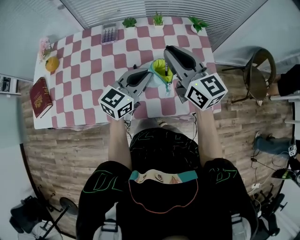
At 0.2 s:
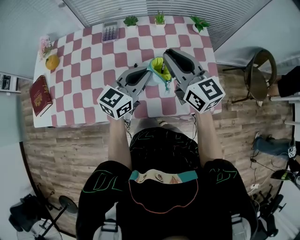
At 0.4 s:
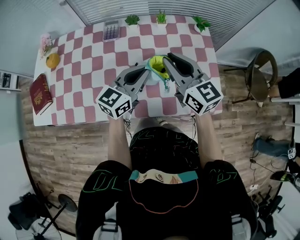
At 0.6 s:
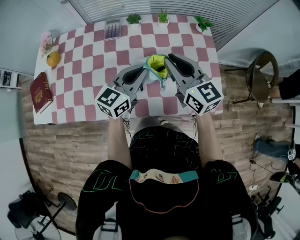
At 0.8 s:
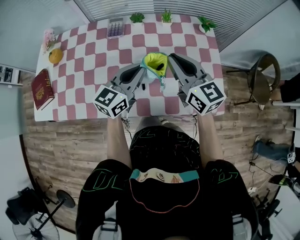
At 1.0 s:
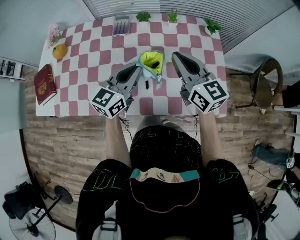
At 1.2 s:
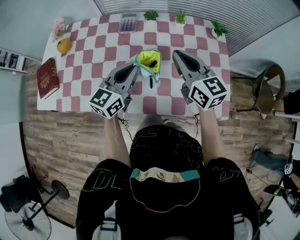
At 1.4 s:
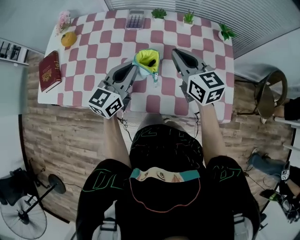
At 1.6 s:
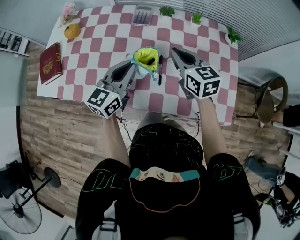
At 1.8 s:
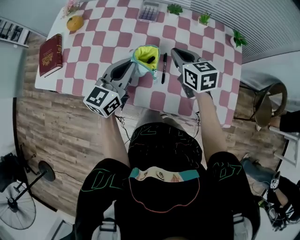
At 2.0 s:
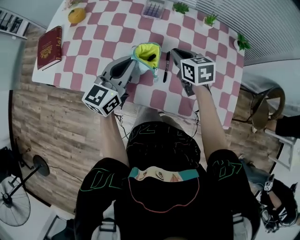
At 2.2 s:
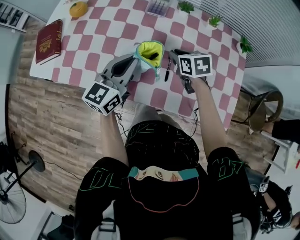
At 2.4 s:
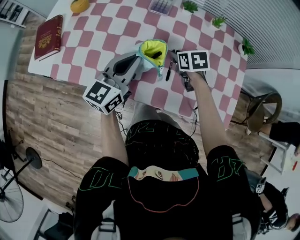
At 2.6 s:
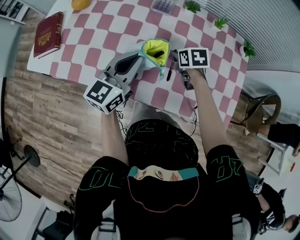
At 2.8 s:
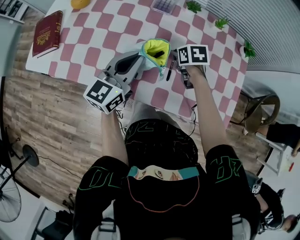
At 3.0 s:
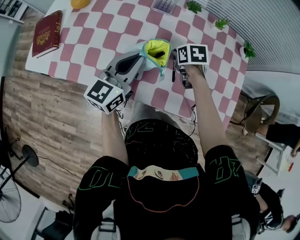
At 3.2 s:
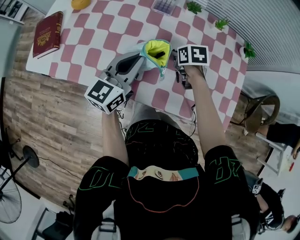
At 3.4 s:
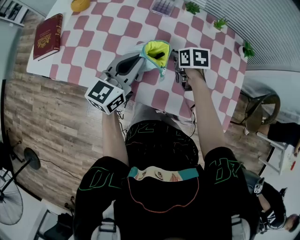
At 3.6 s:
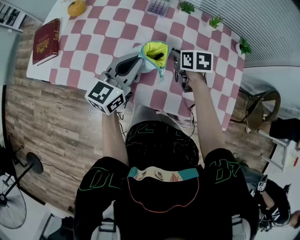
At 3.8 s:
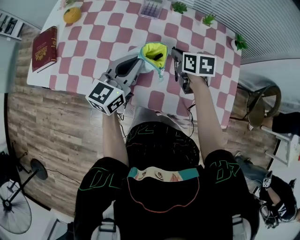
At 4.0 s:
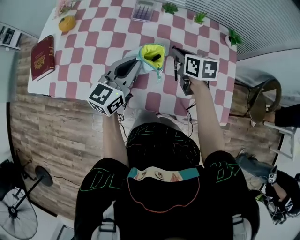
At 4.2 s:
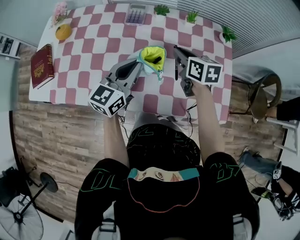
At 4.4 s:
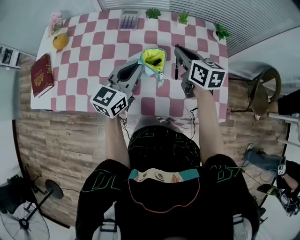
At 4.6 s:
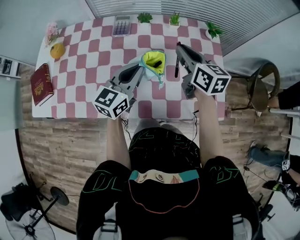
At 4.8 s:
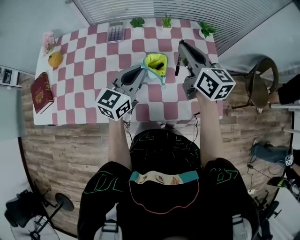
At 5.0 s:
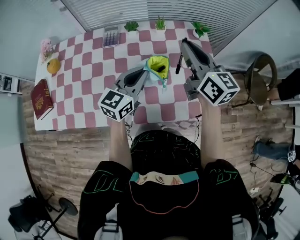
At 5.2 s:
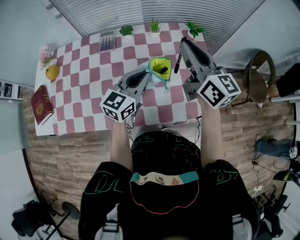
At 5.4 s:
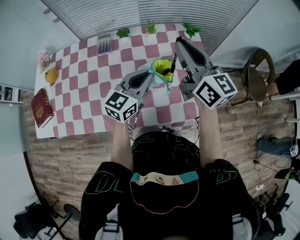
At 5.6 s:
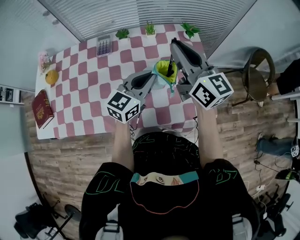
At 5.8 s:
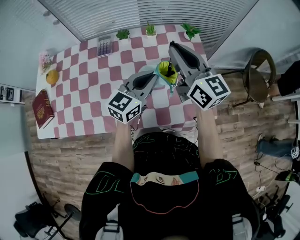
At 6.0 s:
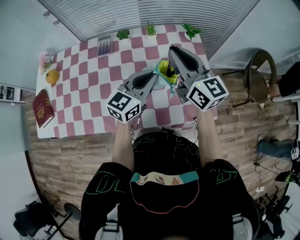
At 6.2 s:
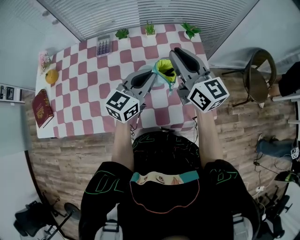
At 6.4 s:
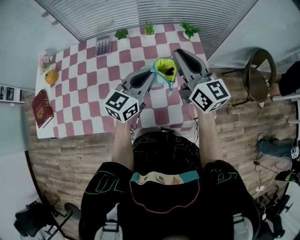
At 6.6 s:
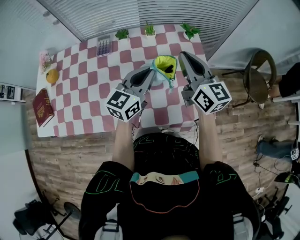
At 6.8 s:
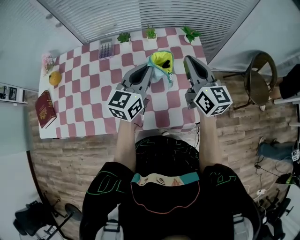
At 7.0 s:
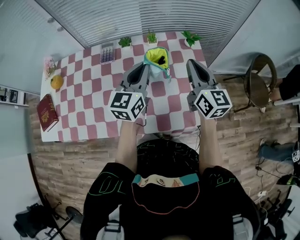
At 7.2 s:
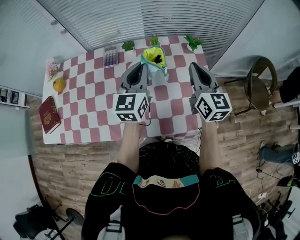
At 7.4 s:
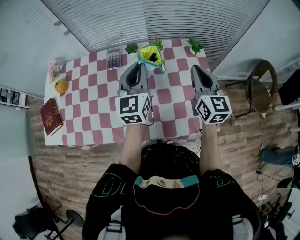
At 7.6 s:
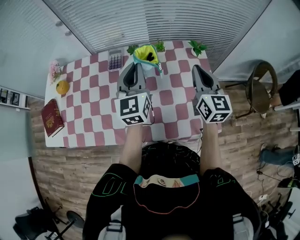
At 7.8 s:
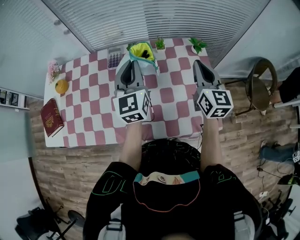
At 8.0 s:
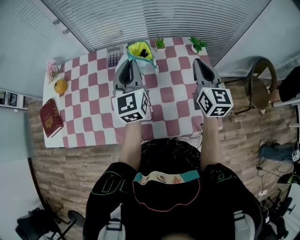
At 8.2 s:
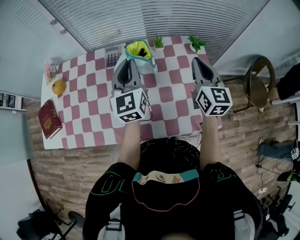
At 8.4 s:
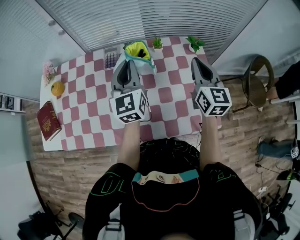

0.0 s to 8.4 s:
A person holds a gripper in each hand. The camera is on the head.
0.0 to 1.4 s: The left gripper heads to the left, covering approximately 15 cm, and swivels some 20 degrees; the right gripper moves to the left and downward, some 10 cm.
1.4 to 2.8 s: The right gripper moves downward, approximately 20 cm, points its fingers about 50 degrees further downward, and opens its fingers. The left gripper is displaced to the left by roughly 5 cm.
2.8 to 4.2 s: The right gripper heads upward and to the right, covering roughly 15 cm, and angles its fingers upward, by roughly 30 degrees, while the left gripper shifts roughly 5 cm to the right.
4.2 to 5.6 s: The right gripper moves upward and to the right, approximately 25 cm, and tips its fingers upward by roughly 40 degrees; the left gripper is displaced to the right by some 20 cm.
5.6 to 7.0 s: The left gripper goes roughly 5 cm upward, and rotates some 20 degrees. The right gripper goes about 10 cm to the right and downward.
7.0 to 8.4 s: The left gripper travels to the left by about 10 cm, and changes its angle by approximately 20 degrees.

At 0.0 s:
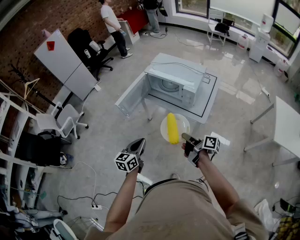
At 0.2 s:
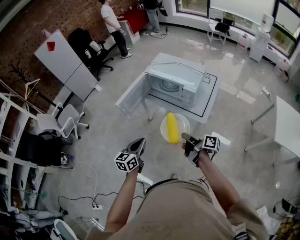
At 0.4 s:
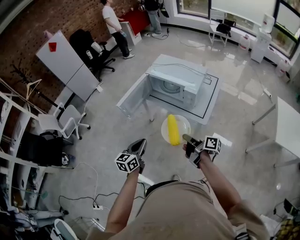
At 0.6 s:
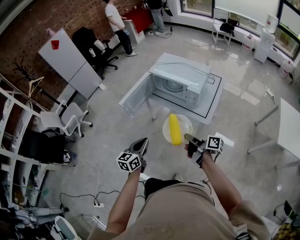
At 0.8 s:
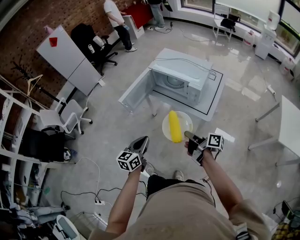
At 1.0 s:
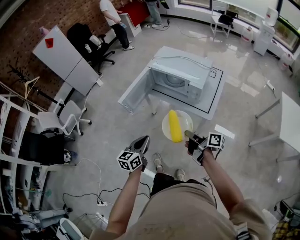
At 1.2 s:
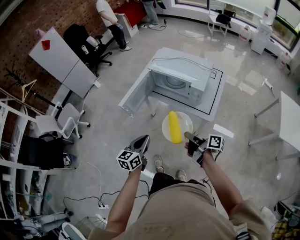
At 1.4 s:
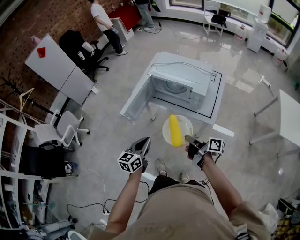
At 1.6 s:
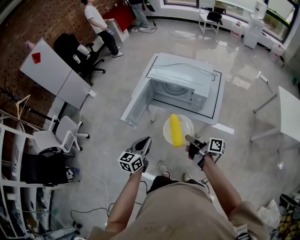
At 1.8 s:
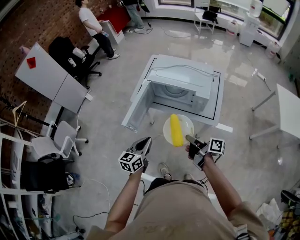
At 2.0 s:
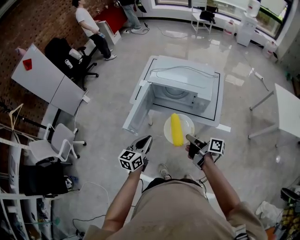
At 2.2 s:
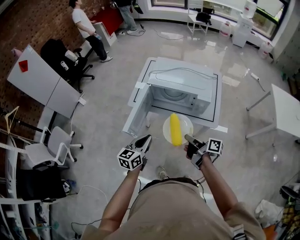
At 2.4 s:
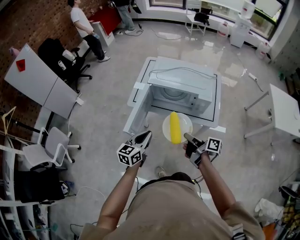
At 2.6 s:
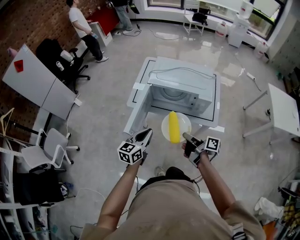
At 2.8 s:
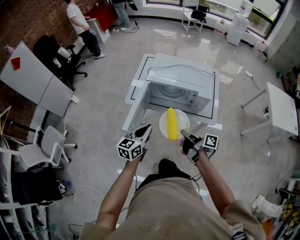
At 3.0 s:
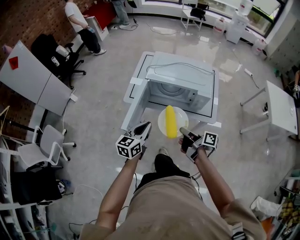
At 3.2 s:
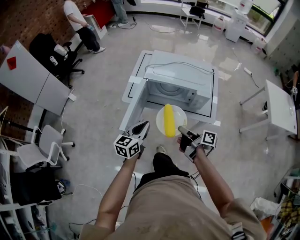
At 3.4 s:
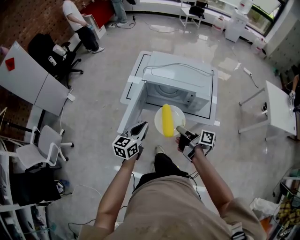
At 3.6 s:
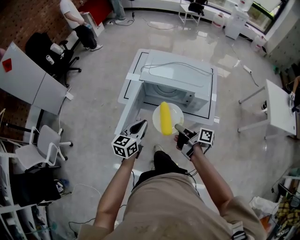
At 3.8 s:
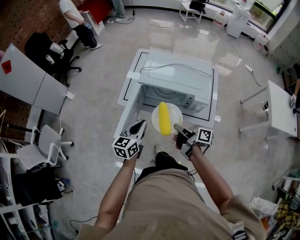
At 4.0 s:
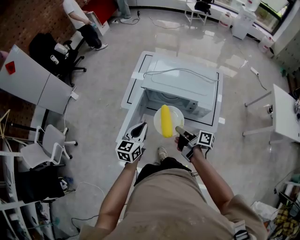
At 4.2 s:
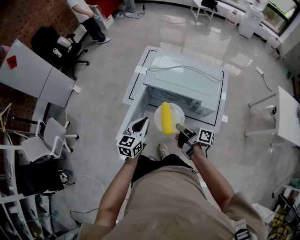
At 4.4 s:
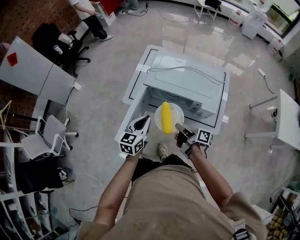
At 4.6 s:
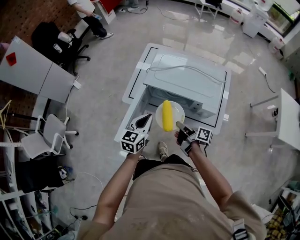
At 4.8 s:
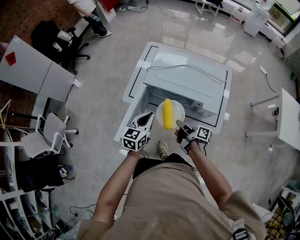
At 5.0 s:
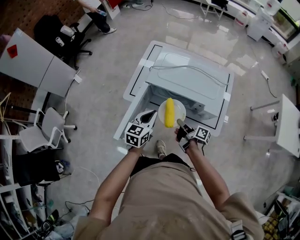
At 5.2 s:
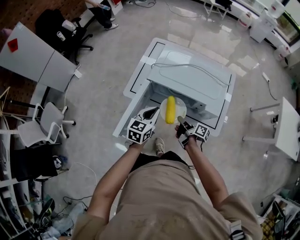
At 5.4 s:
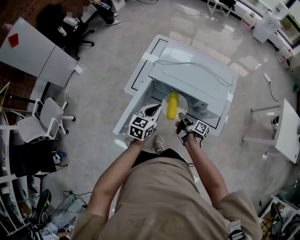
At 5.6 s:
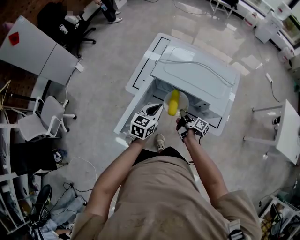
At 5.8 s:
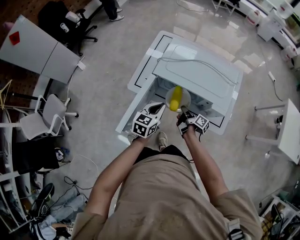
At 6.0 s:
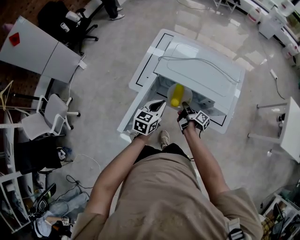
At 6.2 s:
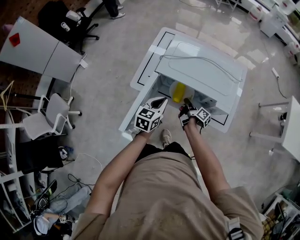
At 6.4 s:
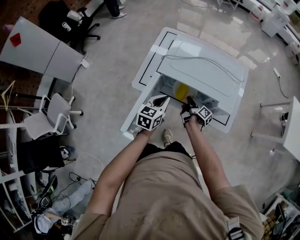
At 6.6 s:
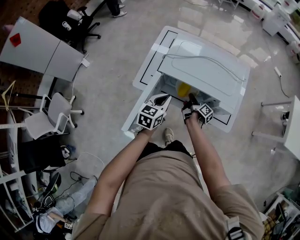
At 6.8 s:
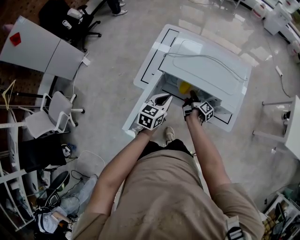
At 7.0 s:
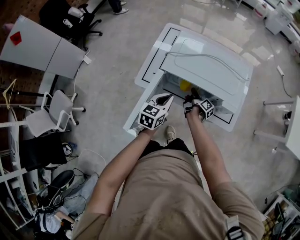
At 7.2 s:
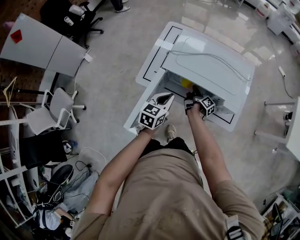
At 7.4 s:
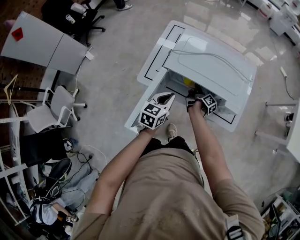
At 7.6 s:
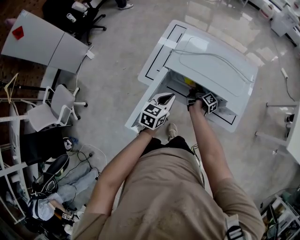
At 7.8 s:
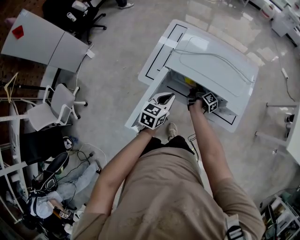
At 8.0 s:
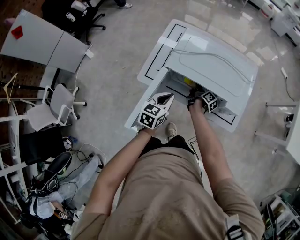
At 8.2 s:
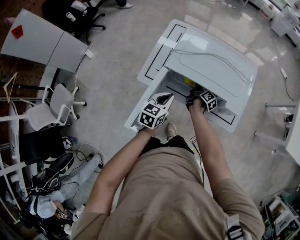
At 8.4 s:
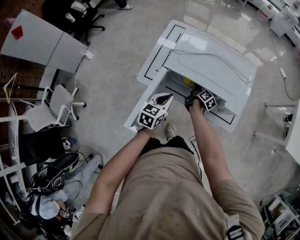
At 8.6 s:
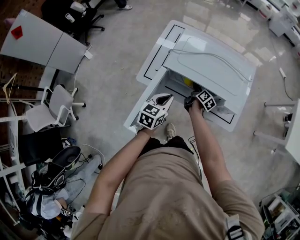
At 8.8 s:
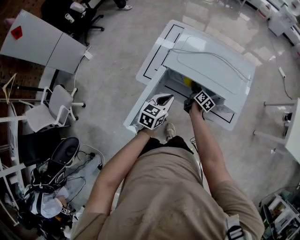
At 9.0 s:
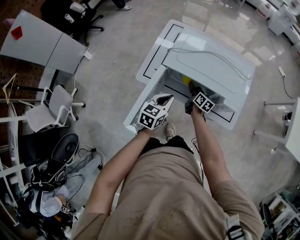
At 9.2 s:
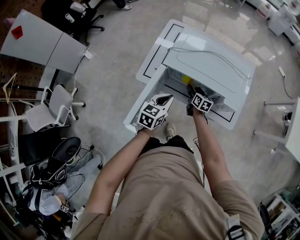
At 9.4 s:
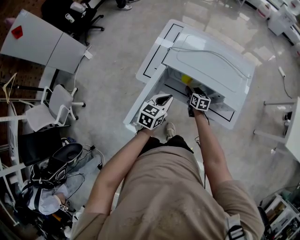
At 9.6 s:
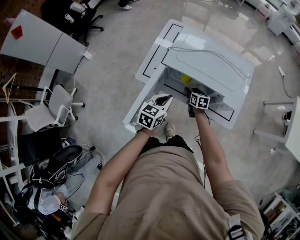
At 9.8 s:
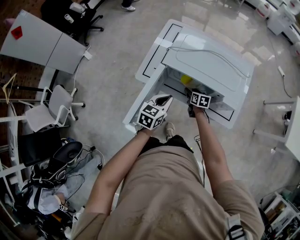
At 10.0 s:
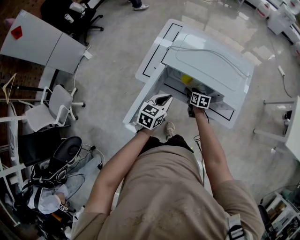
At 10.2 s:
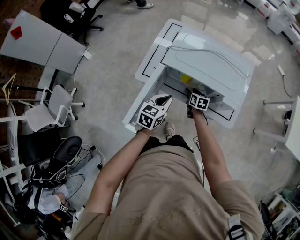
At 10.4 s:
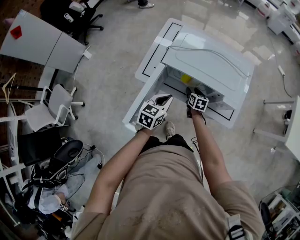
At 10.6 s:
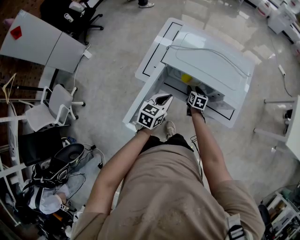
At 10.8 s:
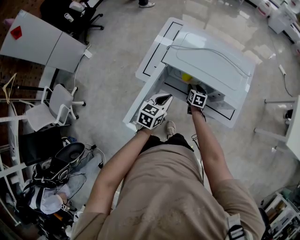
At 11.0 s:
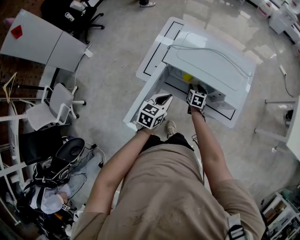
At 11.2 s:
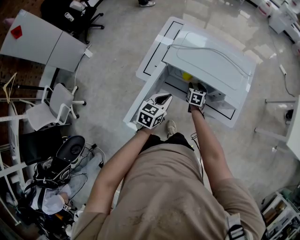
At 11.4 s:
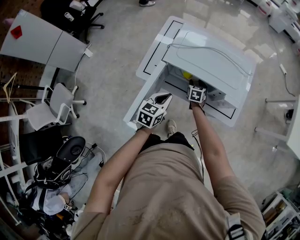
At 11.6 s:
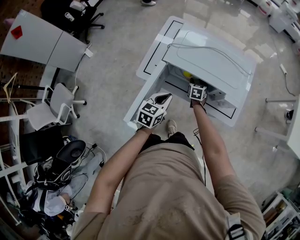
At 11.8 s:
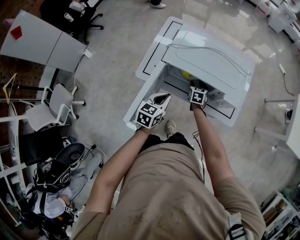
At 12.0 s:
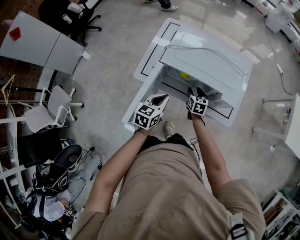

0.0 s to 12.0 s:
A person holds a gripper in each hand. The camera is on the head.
0.0 to 1.6 s: The left gripper moves forward, roughly 15 cm; the right gripper heads forward and to the left, covering some 10 cm.
1.6 to 3.0 s: The right gripper heads to the left and forward, covering some 10 cm; the left gripper is displaced forward by some 15 cm.
3.0 to 4.4 s: The left gripper travels forward by some 10 cm, while the right gripper is displaced forward and downward by some 15 cm.
4.4 to 6.0 s: The right gripper travels downward and forward by about 20 cm, while the left gripper shifts some 10 cm downward and forward.
6.0 to 7.6 s: The right gripper moves forward, about 10 cm.
7.6 to 9.0 s: The right gripper changes its angle by roughly 40 degrees, and opens.
9.0 to 10.4 s: The right gripper changes its angle by about 30 degrees.
10.4 to 12.0 s: The grippers make only small movements.

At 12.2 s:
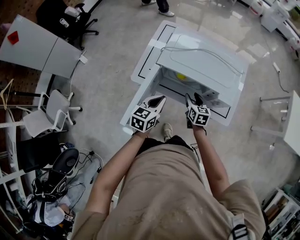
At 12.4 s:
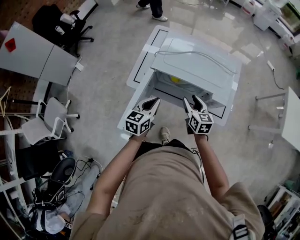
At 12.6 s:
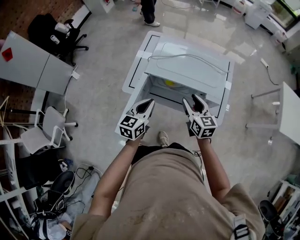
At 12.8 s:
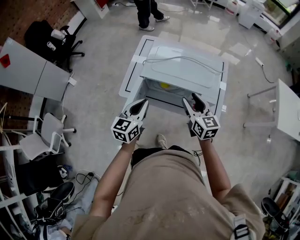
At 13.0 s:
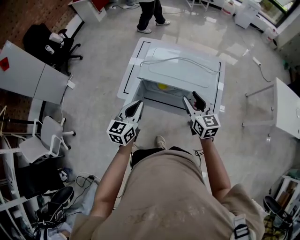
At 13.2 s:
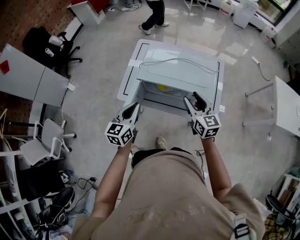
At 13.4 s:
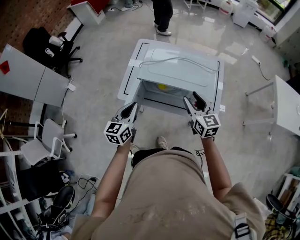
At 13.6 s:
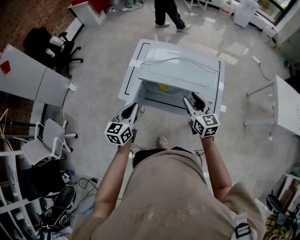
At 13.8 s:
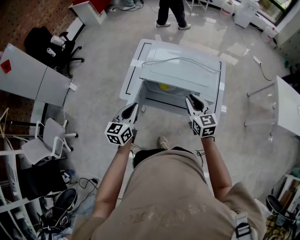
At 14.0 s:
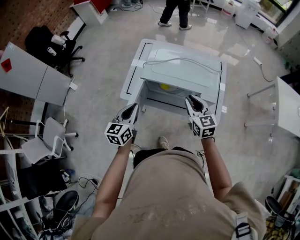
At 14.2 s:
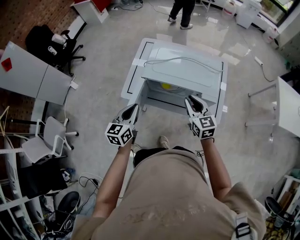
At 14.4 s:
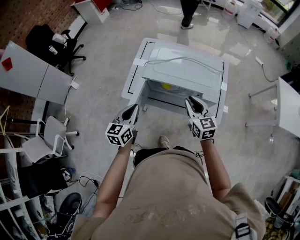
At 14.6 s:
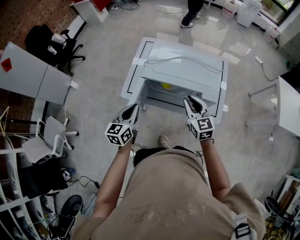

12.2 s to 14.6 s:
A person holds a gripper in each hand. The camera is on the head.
12.2 to 13.4 s: The right gripper goes approximately 20 cm upward, and turns by roughly 20 degrees. Meanwhile the left gripper moves upward, some 10 cm.
13.4 to 14.6 s: The right gripper closes up.
